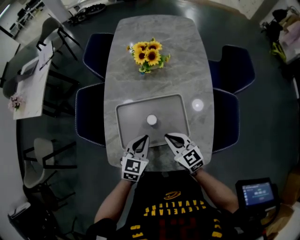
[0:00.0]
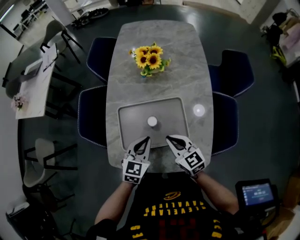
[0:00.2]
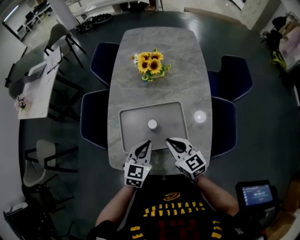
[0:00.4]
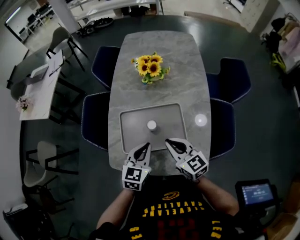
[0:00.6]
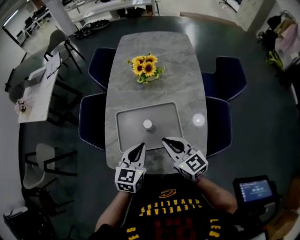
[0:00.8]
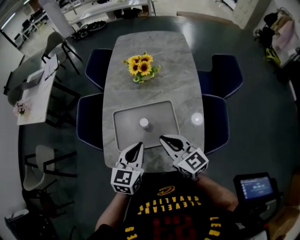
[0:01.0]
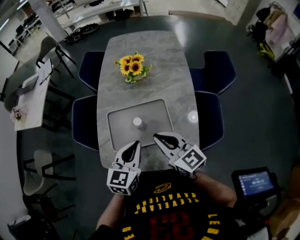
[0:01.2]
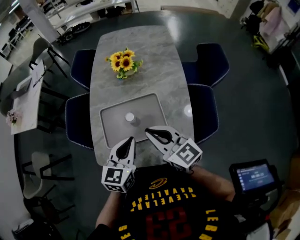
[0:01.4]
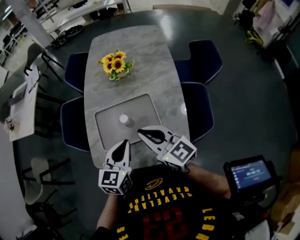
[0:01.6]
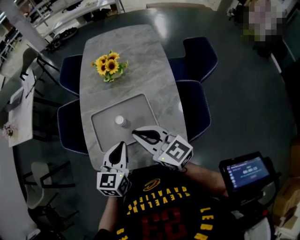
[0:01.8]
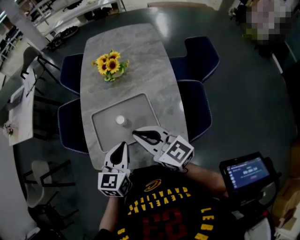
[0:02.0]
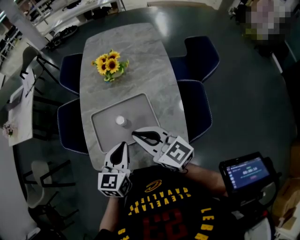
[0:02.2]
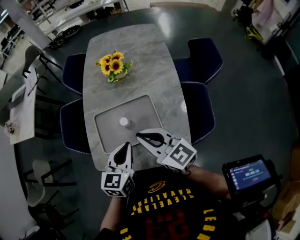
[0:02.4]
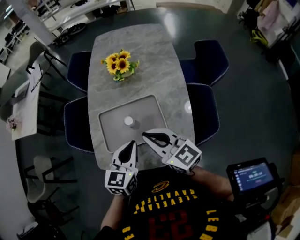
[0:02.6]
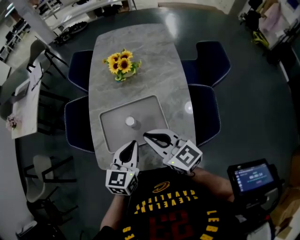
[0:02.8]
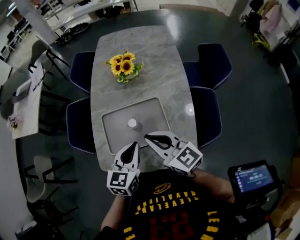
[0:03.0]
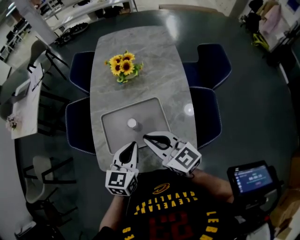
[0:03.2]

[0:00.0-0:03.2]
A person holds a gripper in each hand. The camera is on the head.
0:00.0 to 0:01.6: The left gripper goes some 15 cm upward and backward. The right gripper heads upward, covering some 15 cm.
0:01.6 to 0:03.2: There are only small adjustments of the grippers.

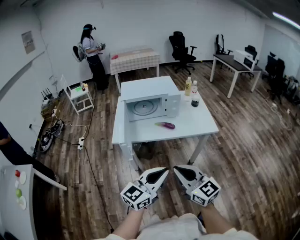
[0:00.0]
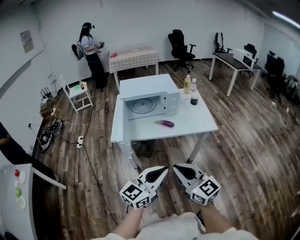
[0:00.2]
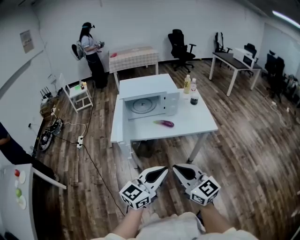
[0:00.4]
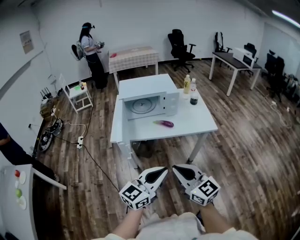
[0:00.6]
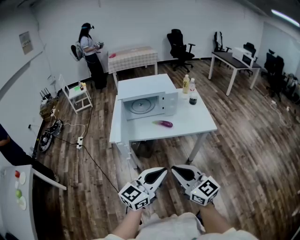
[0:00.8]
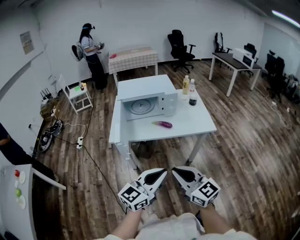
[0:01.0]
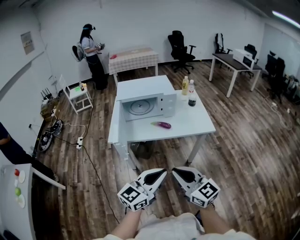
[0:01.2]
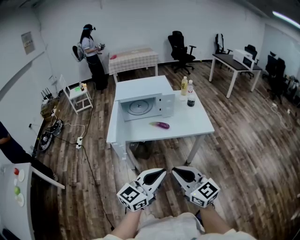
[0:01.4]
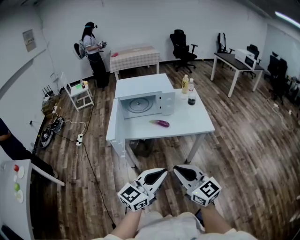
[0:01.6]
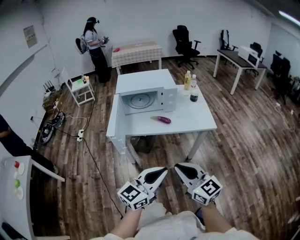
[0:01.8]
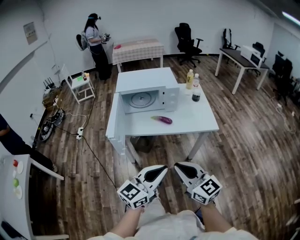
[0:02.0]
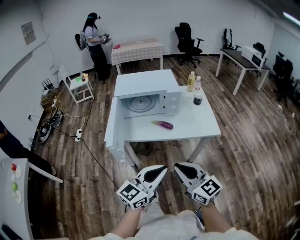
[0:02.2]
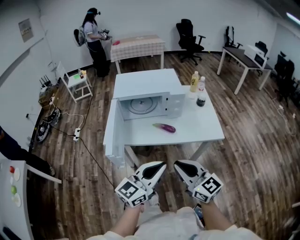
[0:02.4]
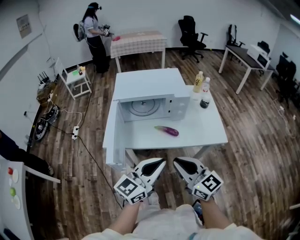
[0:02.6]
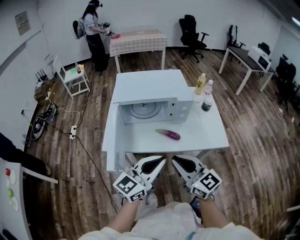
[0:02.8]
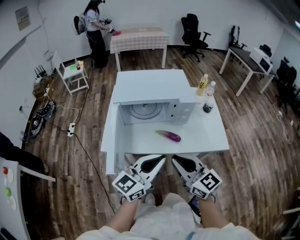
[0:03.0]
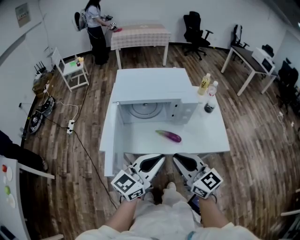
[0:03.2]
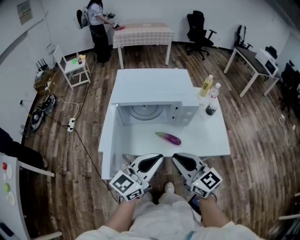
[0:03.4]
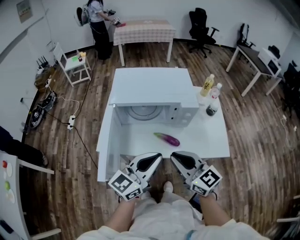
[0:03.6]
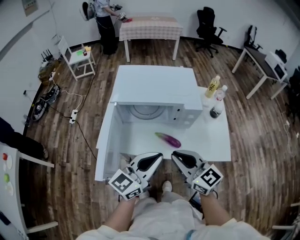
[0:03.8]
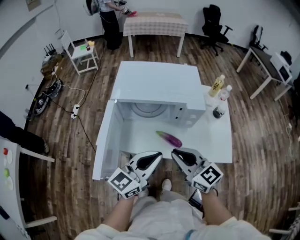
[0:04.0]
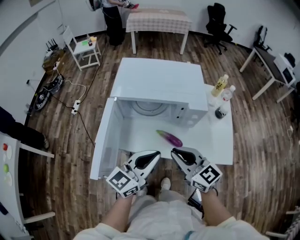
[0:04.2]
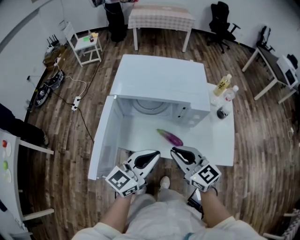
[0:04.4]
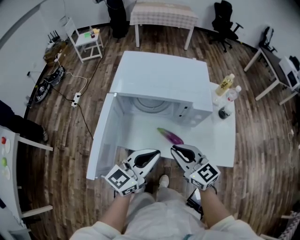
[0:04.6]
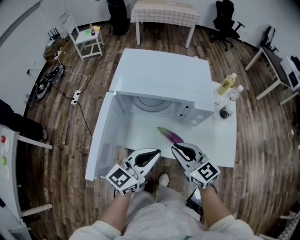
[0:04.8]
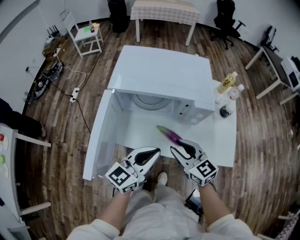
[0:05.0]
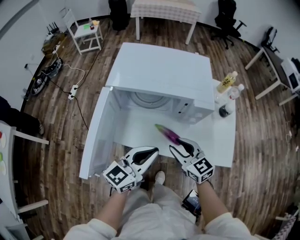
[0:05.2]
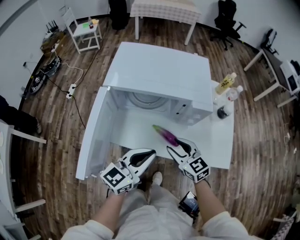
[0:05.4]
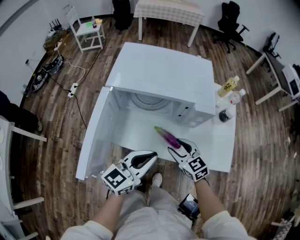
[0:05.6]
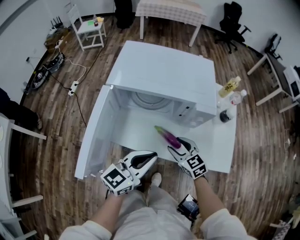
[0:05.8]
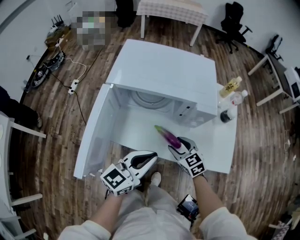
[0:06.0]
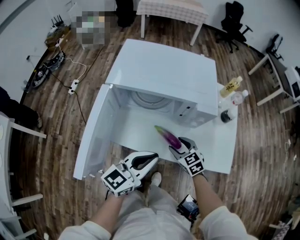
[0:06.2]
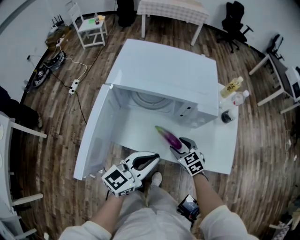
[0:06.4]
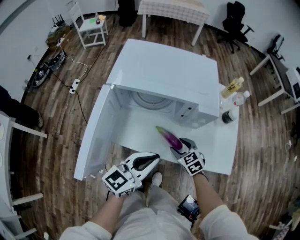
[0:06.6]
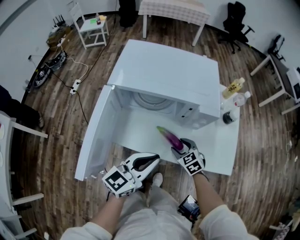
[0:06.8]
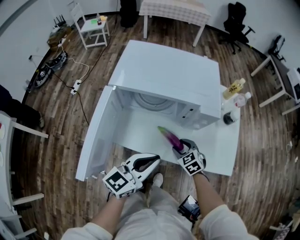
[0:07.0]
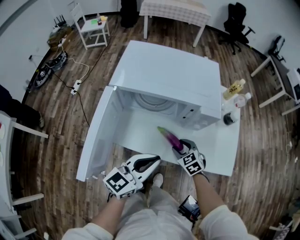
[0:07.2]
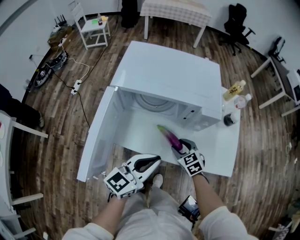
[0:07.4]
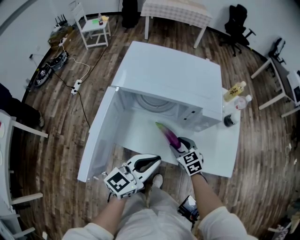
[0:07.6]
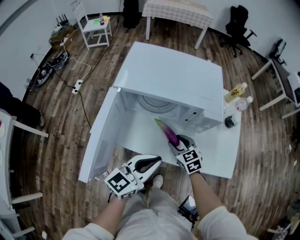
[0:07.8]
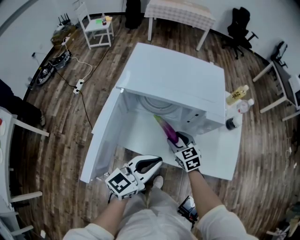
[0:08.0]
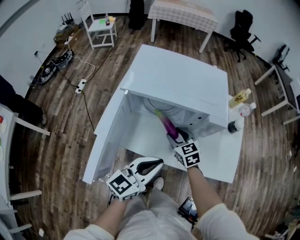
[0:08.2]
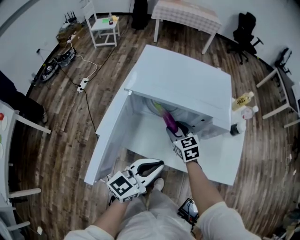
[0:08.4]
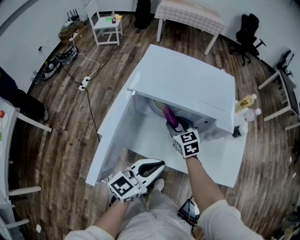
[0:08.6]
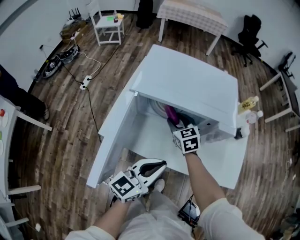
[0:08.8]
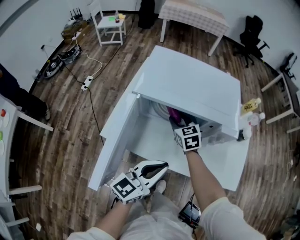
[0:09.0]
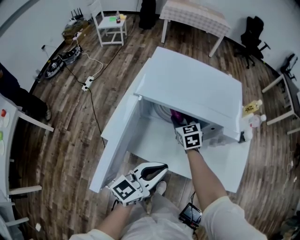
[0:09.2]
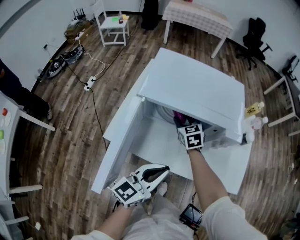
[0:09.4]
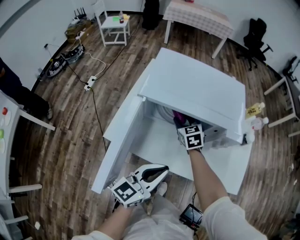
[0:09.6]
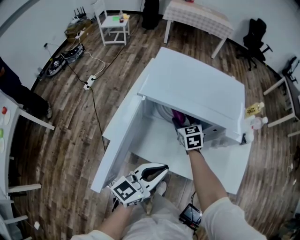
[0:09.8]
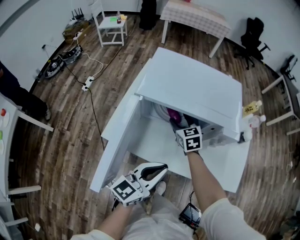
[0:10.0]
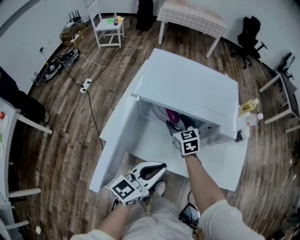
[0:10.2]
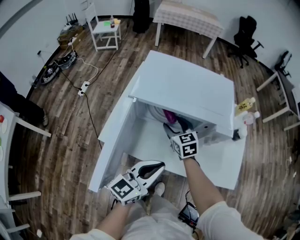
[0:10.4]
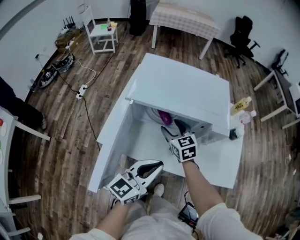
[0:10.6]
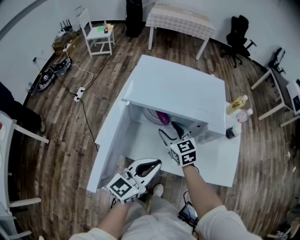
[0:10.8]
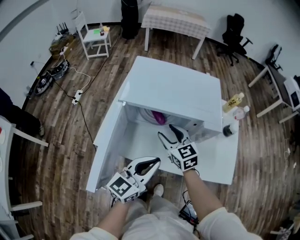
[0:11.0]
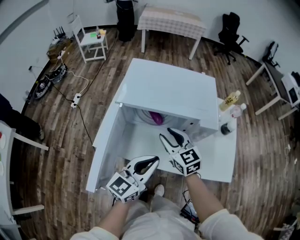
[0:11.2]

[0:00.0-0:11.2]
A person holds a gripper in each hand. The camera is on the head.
0:00.0 to 0:01.6: Both grippers move to the right, approximately 5 cm.
0:01.6 to 0:03.2: Both grippers travel together forward, about 30 cm.
0:03.2 to 0:04.8: The two grippers go about 15 cm forward and downward.
0:04.8 to 0:06.4: The right gripper travels downward by roughly 20 cm, rotates about 30 degrees, and opens.
0:06.4 to 0:08.0: The right gripper moves to the left, about 5 cm.
0:08.0 to 0:09.6: The right gripper heads forward and to the left, covering roughly 15 cm.
0:09.6 to 0:11.2: The right gripper travels upward and backward by some 15 cm, and swivels approximately 20 degrees. The left gripper ends up approximately 5 cm from where it was.

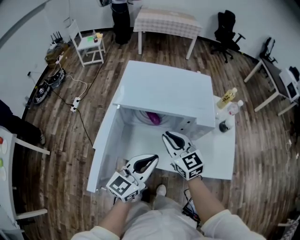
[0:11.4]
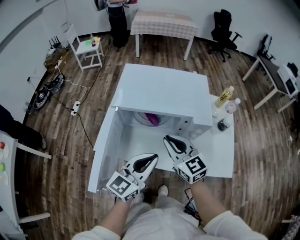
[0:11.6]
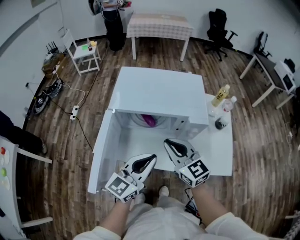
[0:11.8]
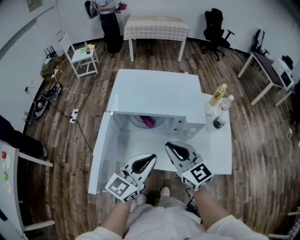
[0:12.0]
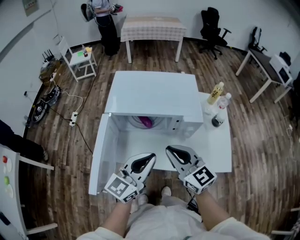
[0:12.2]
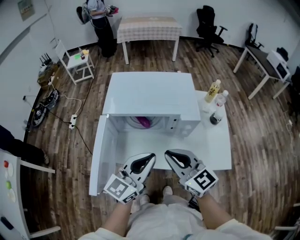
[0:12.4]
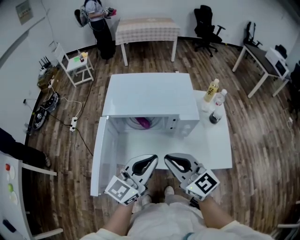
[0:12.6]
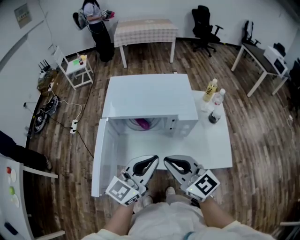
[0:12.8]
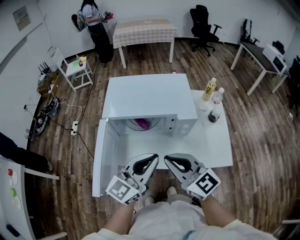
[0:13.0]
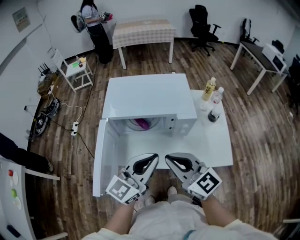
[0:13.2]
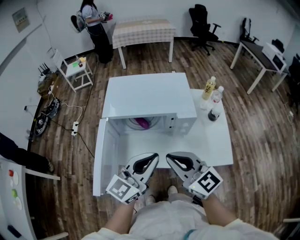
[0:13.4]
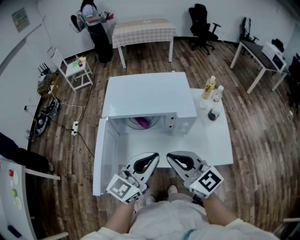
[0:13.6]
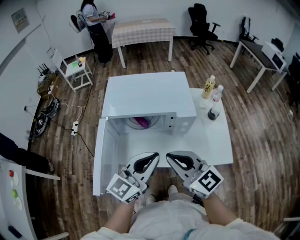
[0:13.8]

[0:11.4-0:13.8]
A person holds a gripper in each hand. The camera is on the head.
0:11.4 to 0:12.6: The right gripper is displaced backward and upward by approximately 15 cm. Meanwhile the left gripper travels upward by about 5 cm.
0:12.6 to 0:13.8: The grippers make only small movements.

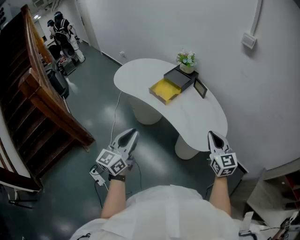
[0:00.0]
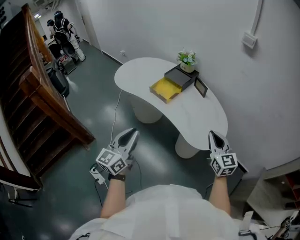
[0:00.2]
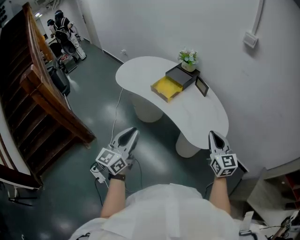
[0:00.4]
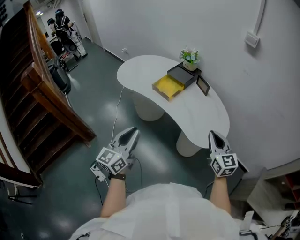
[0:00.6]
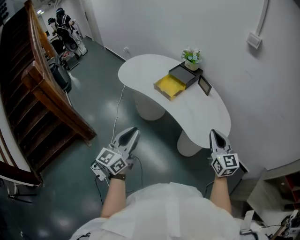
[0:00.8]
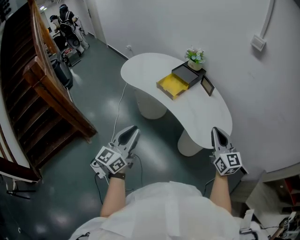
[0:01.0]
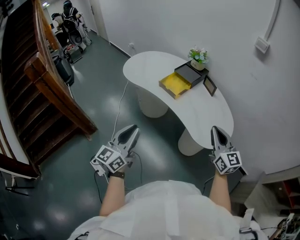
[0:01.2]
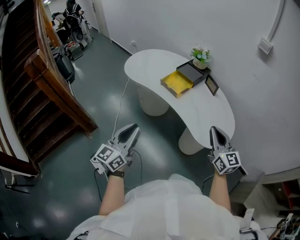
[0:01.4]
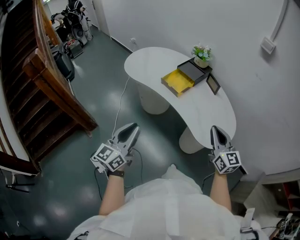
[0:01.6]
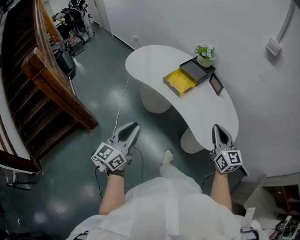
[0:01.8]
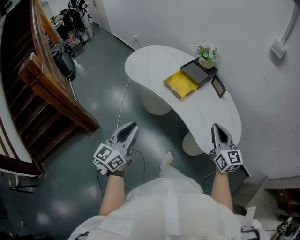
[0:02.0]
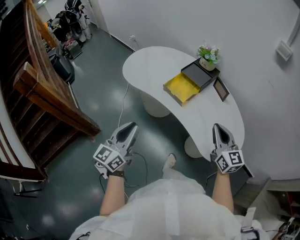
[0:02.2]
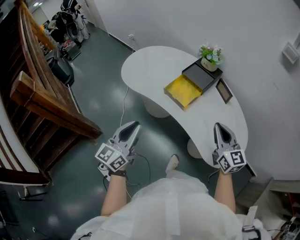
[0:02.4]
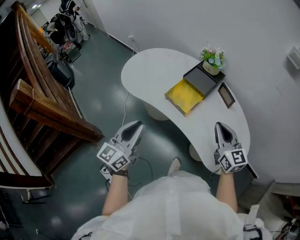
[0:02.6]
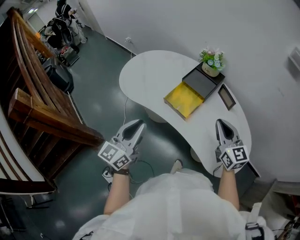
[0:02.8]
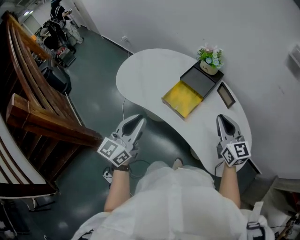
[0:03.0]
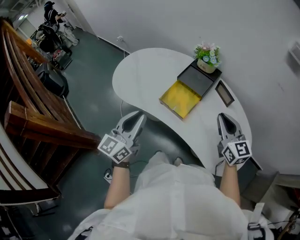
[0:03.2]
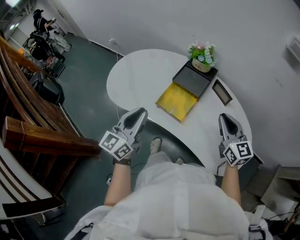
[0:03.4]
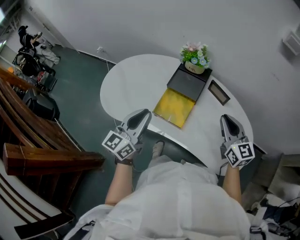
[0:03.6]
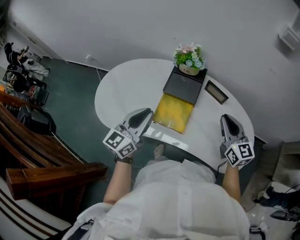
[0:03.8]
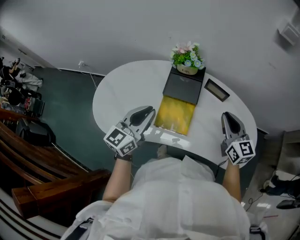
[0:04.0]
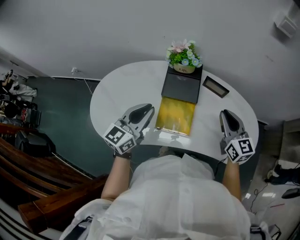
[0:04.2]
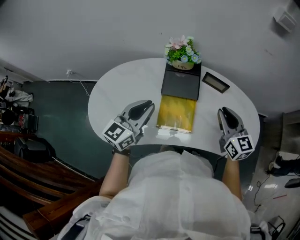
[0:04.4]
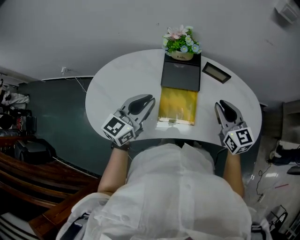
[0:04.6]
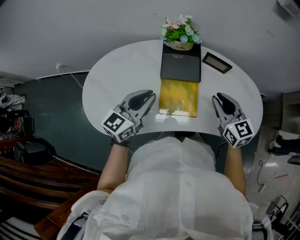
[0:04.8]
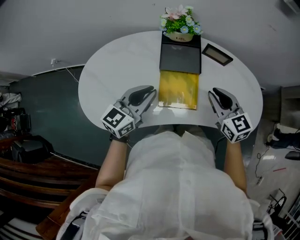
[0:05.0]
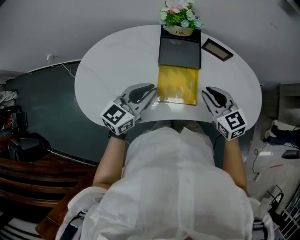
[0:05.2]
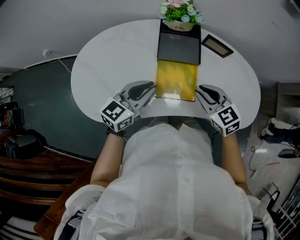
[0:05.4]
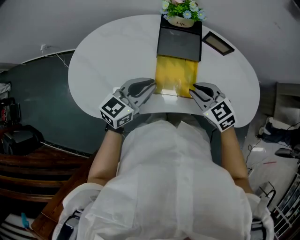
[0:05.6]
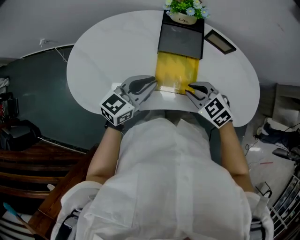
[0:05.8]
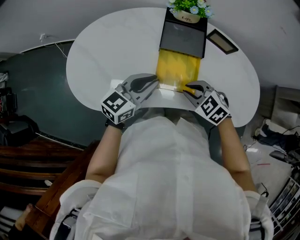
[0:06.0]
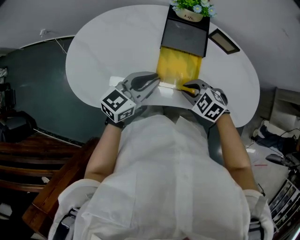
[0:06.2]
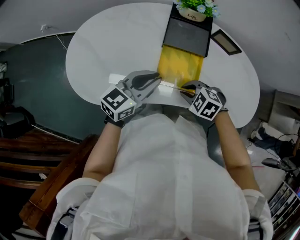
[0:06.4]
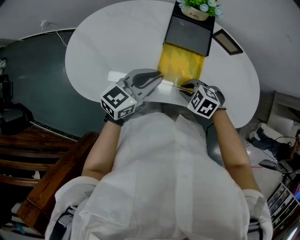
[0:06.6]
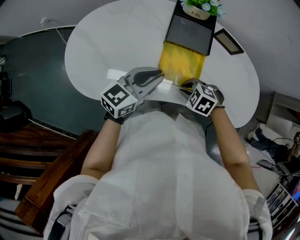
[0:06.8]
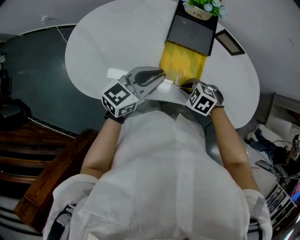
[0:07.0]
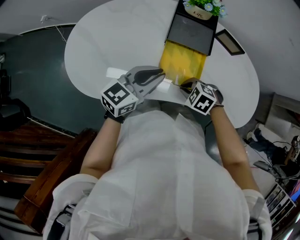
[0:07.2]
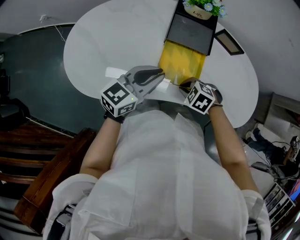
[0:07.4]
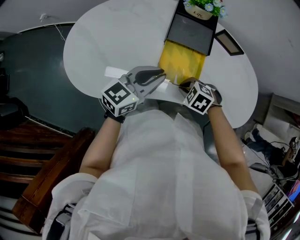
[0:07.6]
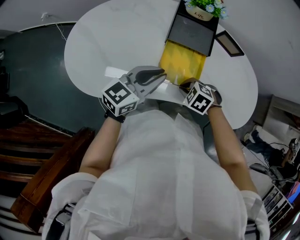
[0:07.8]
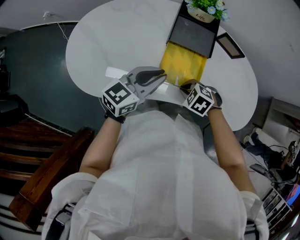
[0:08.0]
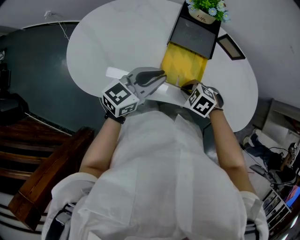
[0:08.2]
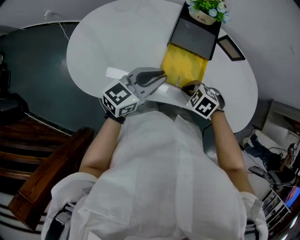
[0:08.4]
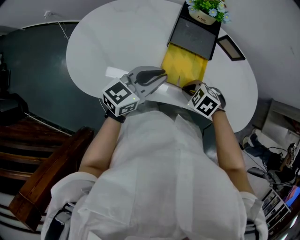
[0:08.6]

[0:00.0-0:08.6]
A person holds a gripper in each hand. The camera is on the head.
0:00.0 to 0:01.4: The right gripper is displaced to the left by about 5 cm; the left gripper ends up some 5 cm from where it was.
0:01.4 to 0:02.8: The grippers both shift forward by about 30 cm.
0:02.8 to 0:04.4: The left gripper changes place by roughly 30 cm, and rotates about 40 degrees; the right gripper moves roughly 10 cm, and swivels roughly 30 degrees.
0:04.4 to 0:05.8: The left gripper shifts some 10 cm downward. The right gripper goes approximately 20 cm to the left, downward and backward, and tilts its fingers some 40 degrees downward.
0:05.8 to 0:07.2: The right gripper shifts approximately 10 cm downward, and rotates some 30 degrees.
0:07.2 to 0:08.6: The grippers make only small movements.
